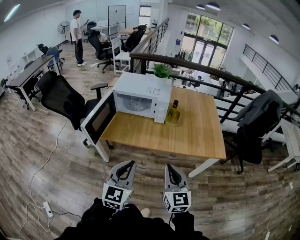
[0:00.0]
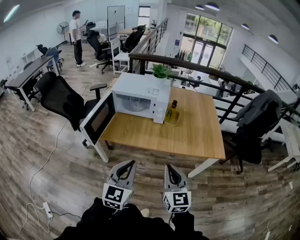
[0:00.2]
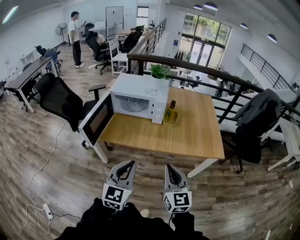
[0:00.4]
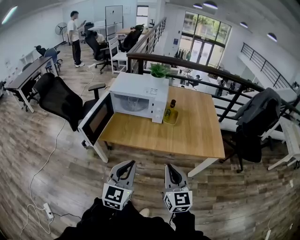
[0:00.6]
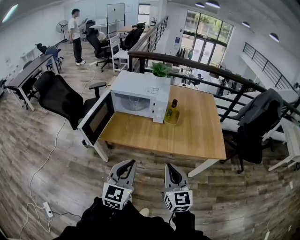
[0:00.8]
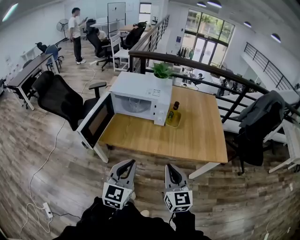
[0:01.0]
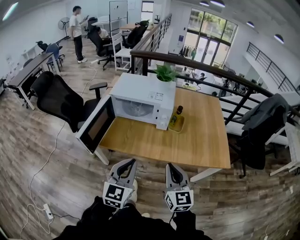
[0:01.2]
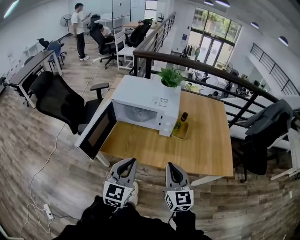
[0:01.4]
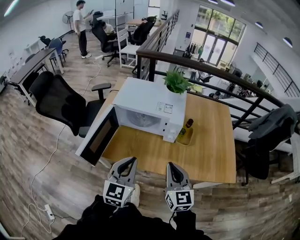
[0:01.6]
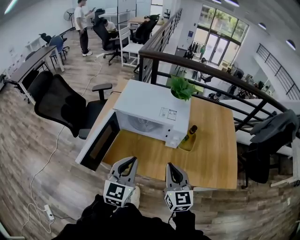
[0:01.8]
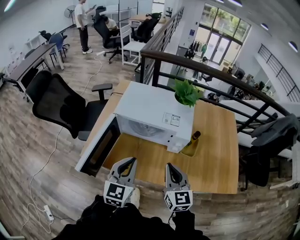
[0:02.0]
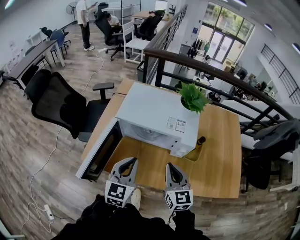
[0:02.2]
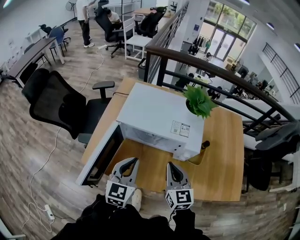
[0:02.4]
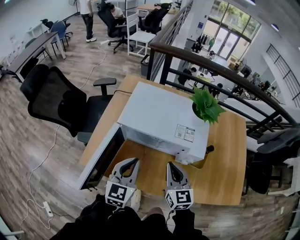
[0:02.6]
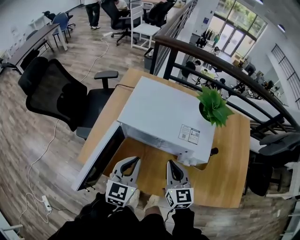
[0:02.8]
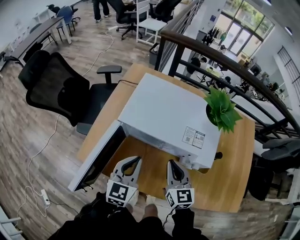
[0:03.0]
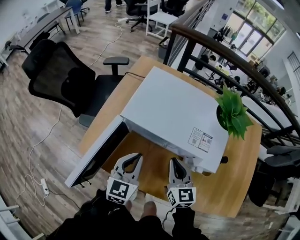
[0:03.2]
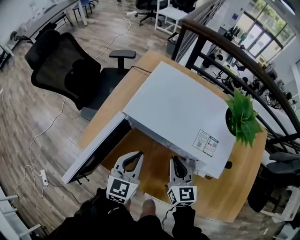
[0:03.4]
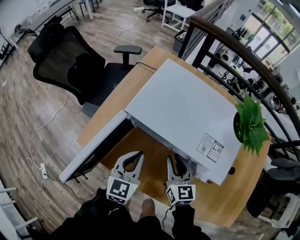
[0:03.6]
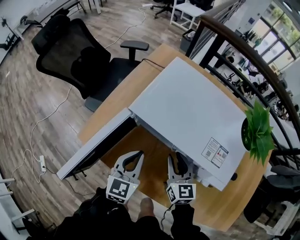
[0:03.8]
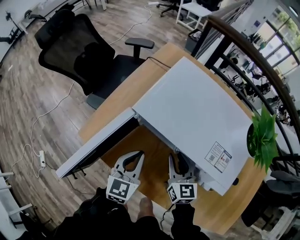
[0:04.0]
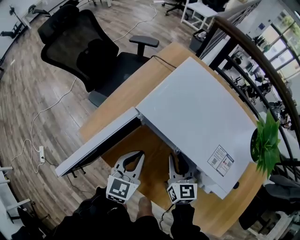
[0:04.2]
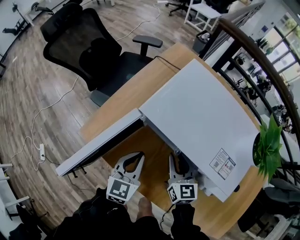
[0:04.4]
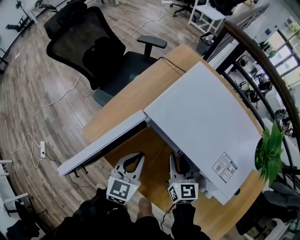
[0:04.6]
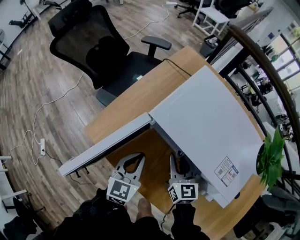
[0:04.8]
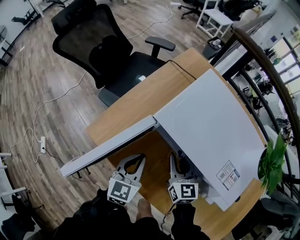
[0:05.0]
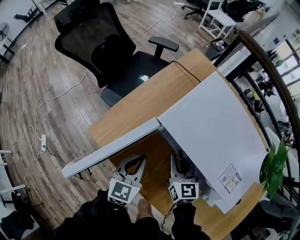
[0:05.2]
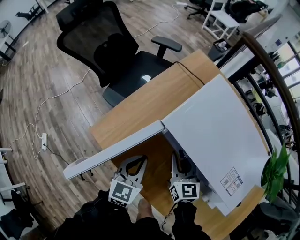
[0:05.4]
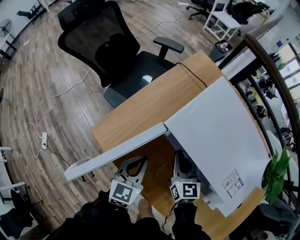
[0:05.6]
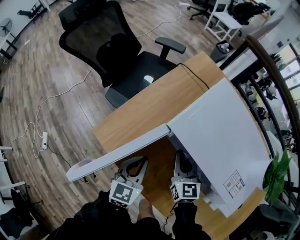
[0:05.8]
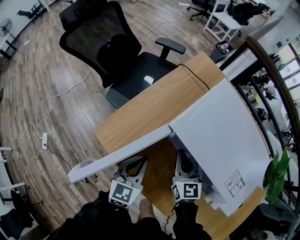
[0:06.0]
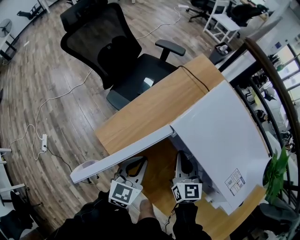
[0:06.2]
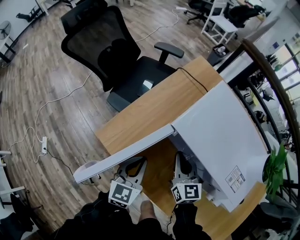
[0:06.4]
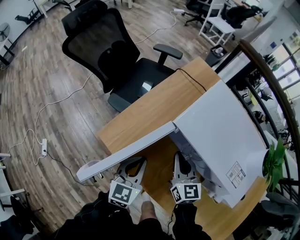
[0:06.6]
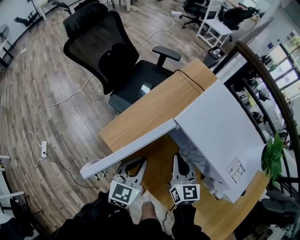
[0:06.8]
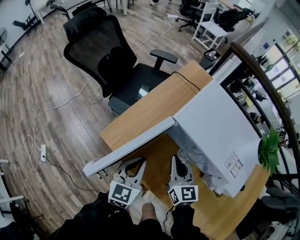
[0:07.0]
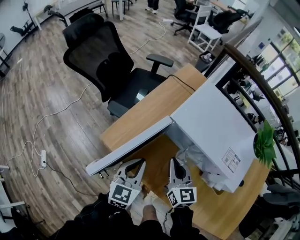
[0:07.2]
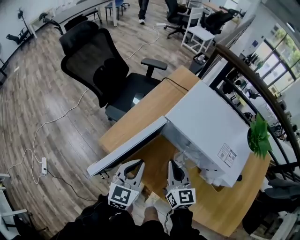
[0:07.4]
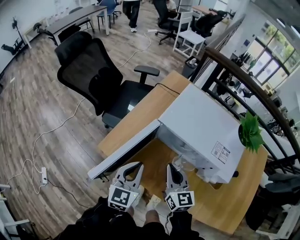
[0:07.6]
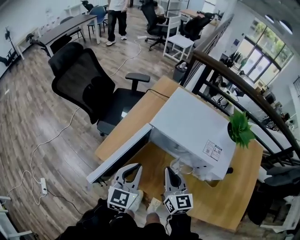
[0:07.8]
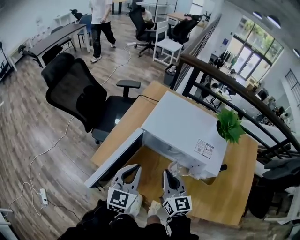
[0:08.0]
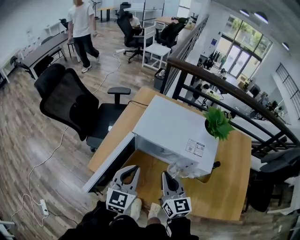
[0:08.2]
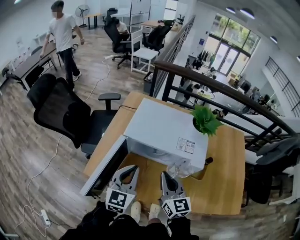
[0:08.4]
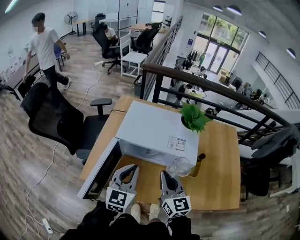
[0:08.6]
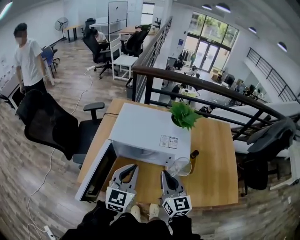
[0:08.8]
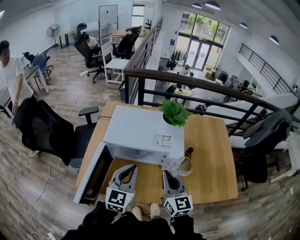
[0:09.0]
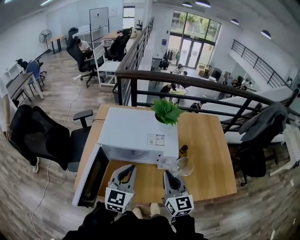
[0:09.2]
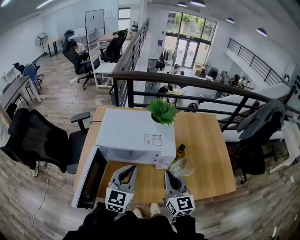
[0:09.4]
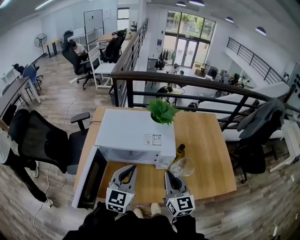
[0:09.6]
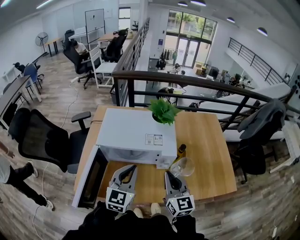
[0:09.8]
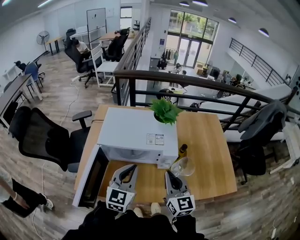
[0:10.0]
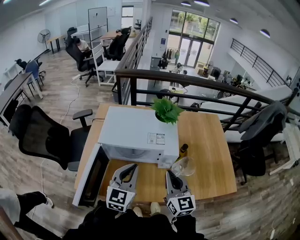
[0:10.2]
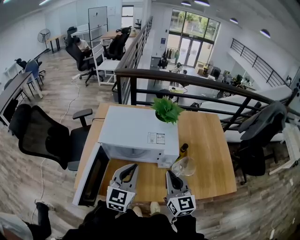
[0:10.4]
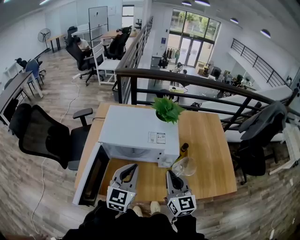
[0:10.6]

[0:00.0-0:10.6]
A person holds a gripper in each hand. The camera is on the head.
0:00.0 to 0:01.6: The two grippers go approximately 25 cm forward.
0:01.6 to 0:03.0: The grippers both shift forward and downward by some 25 cm.
0:03.0 to 0:04.6: The right gripper travels downward, forward and to the left by approximately 15 cm, and opens its fingers; the left gripper is displaced downward by about 10 cm, and turns by about 20 degrees.
0:04.6 to 0:06.0: Both grippers travel together to the left, about 5 cm. The right gripper closes up.
0:06.0 to 0:07.6: The right gripper is displaced backward and upward by approximately 15 cm. The left gripper is displaced upward and backward by about 10 cm.
0:07.6 to 0:09.0: The left gripper changes place by roughly 20 cm, and rotates approximately 30 degrees. Meanwhile the right gripper changes place by roughly 20 cm, and rotates approximately 30 degrees.
0:09.0 to 0:10.6: The grippers move only a little.

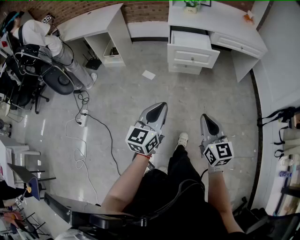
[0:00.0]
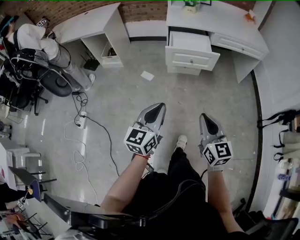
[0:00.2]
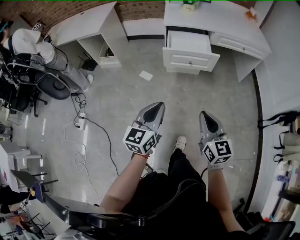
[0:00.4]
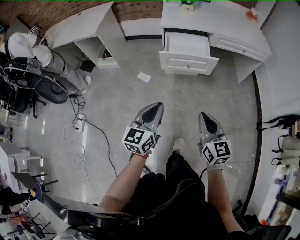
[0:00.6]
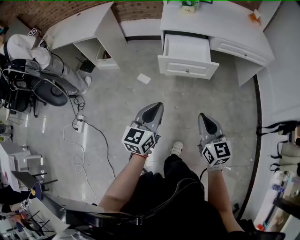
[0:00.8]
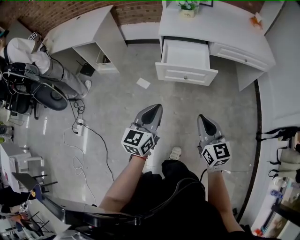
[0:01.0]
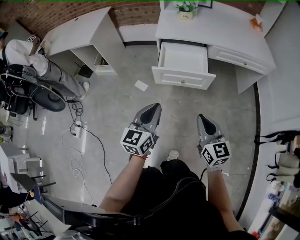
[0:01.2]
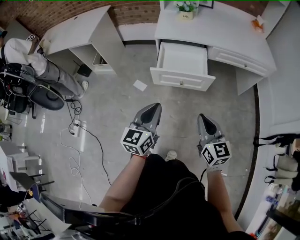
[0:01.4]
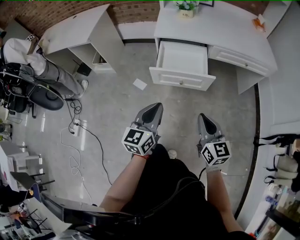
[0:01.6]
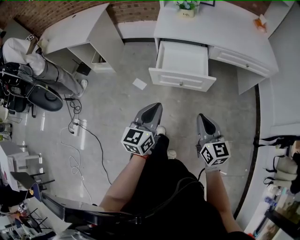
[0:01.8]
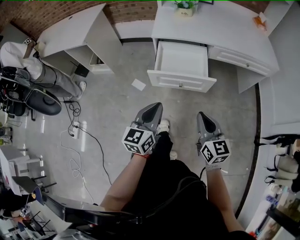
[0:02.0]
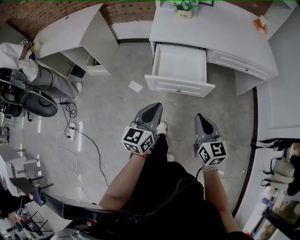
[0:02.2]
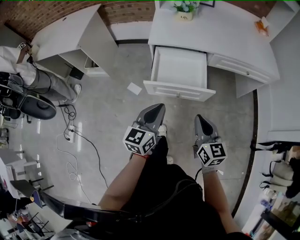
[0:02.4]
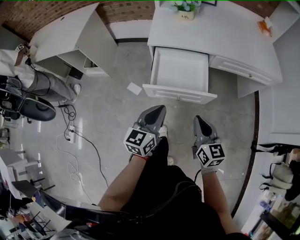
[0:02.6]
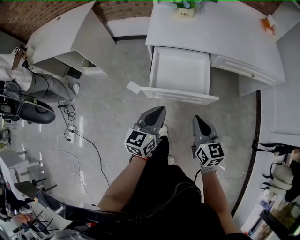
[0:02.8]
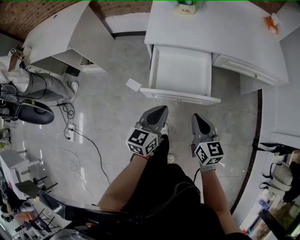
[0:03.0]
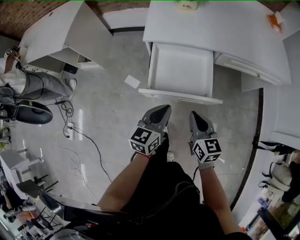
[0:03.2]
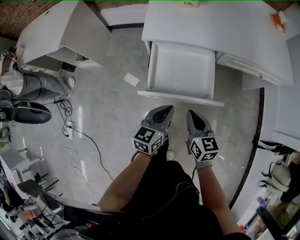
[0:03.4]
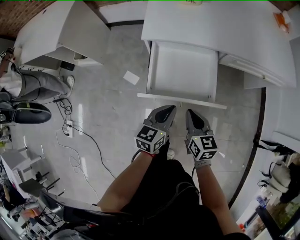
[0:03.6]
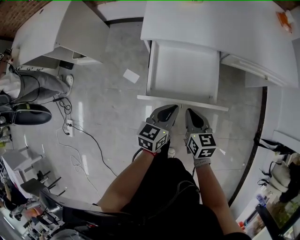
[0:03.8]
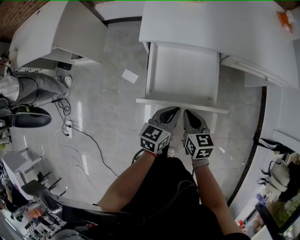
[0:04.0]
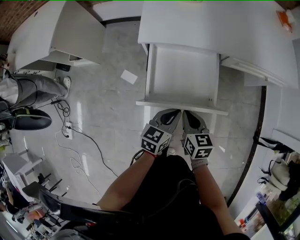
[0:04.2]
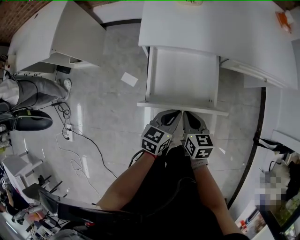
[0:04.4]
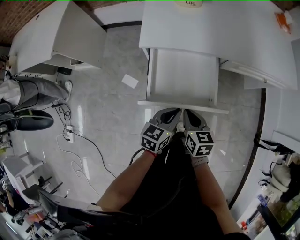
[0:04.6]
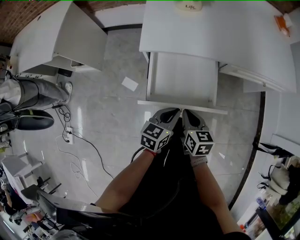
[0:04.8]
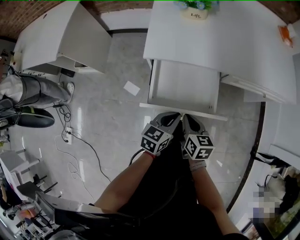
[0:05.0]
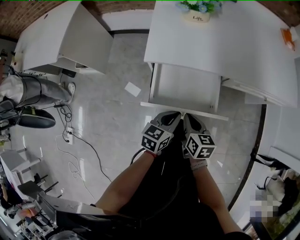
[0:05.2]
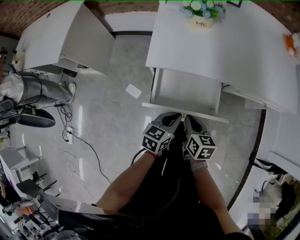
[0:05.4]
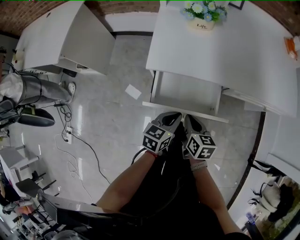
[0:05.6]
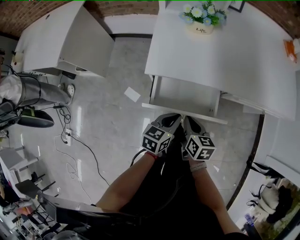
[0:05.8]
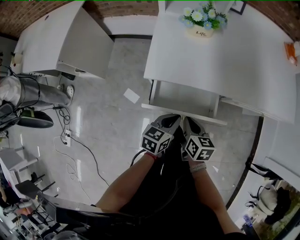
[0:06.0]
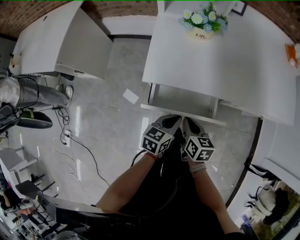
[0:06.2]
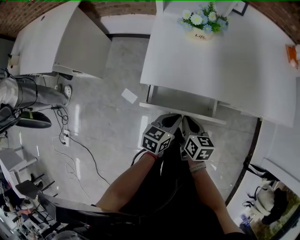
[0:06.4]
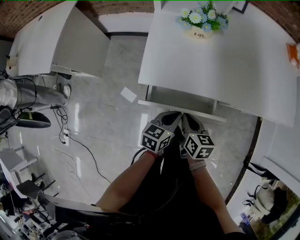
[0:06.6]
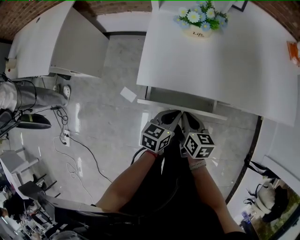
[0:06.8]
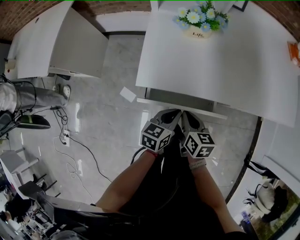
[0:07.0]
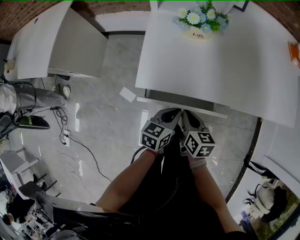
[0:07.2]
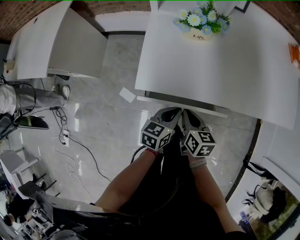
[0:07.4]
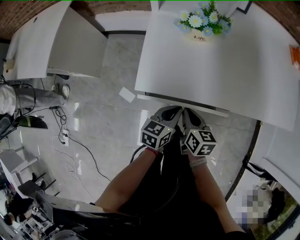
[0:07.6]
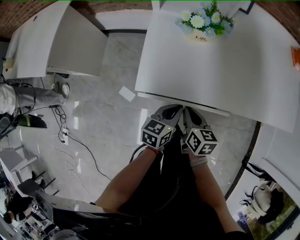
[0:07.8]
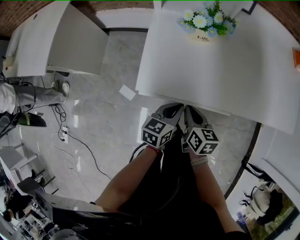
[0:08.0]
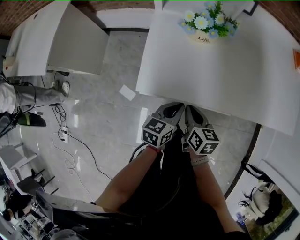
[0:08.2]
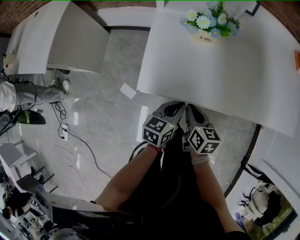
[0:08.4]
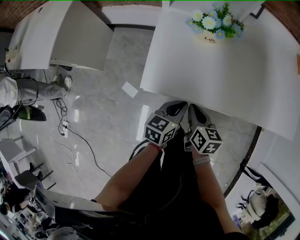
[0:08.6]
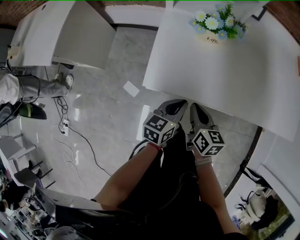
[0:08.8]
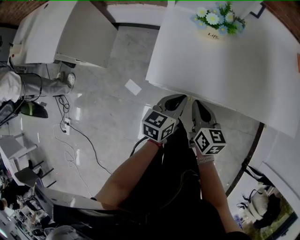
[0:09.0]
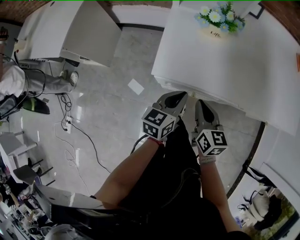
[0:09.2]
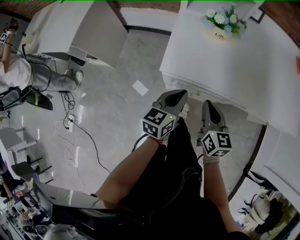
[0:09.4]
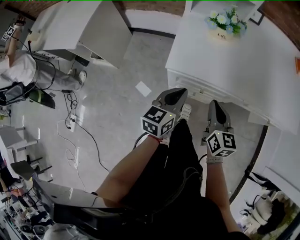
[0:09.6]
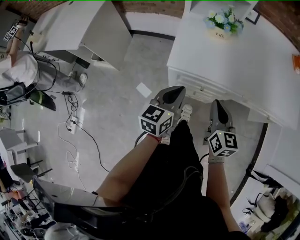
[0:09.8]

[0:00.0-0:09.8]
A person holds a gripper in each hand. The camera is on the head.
0:00.0 to 0:01.4: Both grippers travel together forward, approximately 30 cm.
0:01.4 to 0:02.8: The grippers both shift forward and downward by about 20 cm.
0:02.8 to 0:04.2: The right gripper shifts approximately 15 cm downward, forward and to the left, and swivels approximately 20 degrees. The left gripper is displaced downward and forward by roughly 15 cm, and swivels about 20 degrees.
0:04.2 to 0:05.6: Both grippers travel together forward, approximately 10 cm.
0:05.6 to 0:07.0: The two grippers go roughly 10 cm forward.
0:07.0 to 0:08.4: Both grippers travel together forward, roughly 5 cm.
0:08.4 to 0:09.8: The right gripper travels upward and backward by some 15 cm, and swivels roughly 30 degrees. The left gripper moves upward, to the left and backward, some 15 cm.

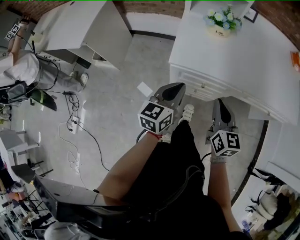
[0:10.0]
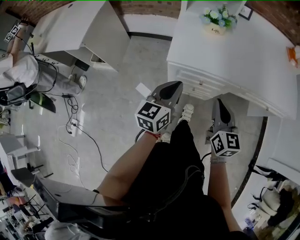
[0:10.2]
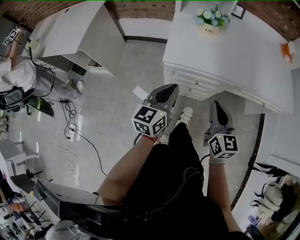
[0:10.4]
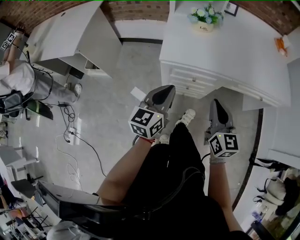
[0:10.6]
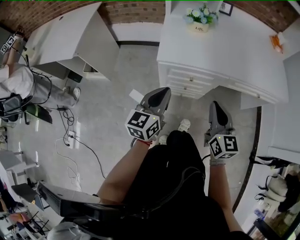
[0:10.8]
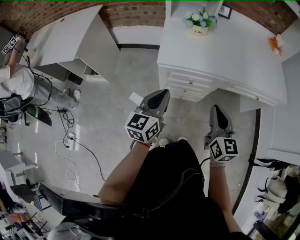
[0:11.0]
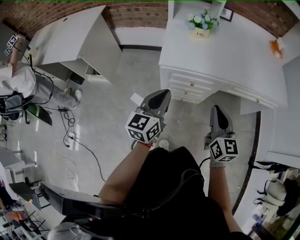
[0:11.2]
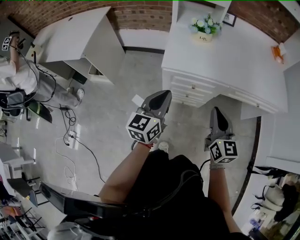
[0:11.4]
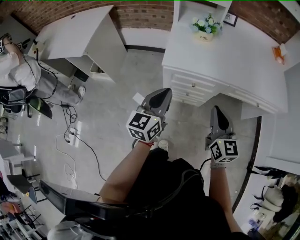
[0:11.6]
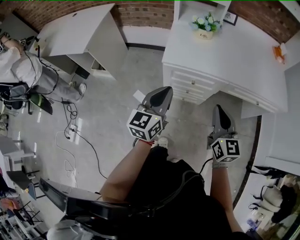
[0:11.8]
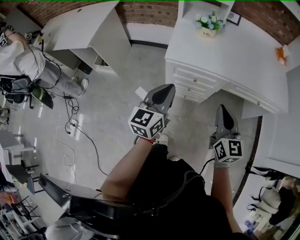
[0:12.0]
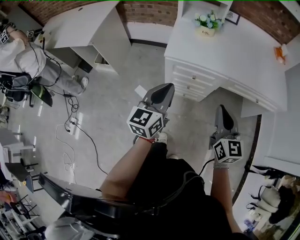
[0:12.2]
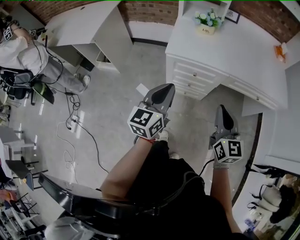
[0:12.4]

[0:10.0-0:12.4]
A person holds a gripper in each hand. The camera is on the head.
0:10.0 to 0:11.2: The grippers both shift backward by some 10 cm.
0:11.2 to 0:12.4: The left gripper goes some 10 cm backward and upward, while the right gripper travels backward by roughly 5 cm.

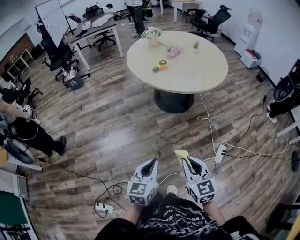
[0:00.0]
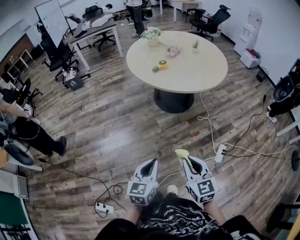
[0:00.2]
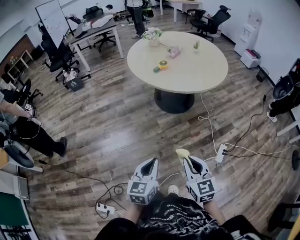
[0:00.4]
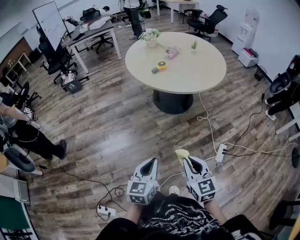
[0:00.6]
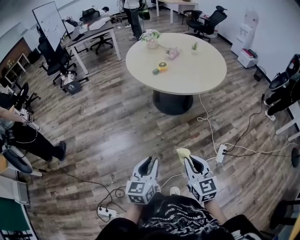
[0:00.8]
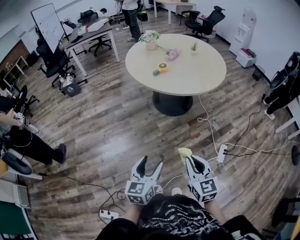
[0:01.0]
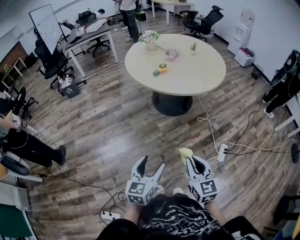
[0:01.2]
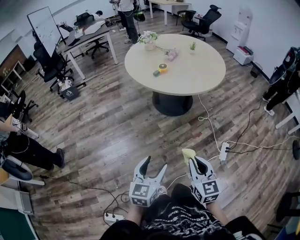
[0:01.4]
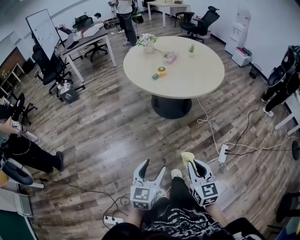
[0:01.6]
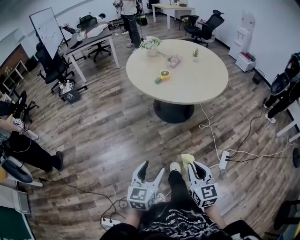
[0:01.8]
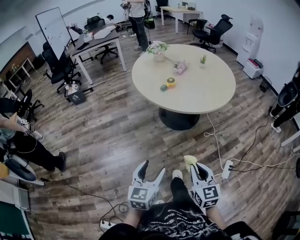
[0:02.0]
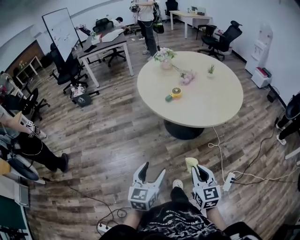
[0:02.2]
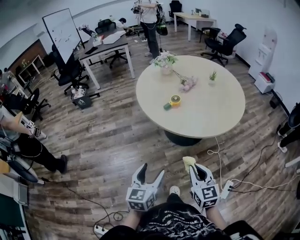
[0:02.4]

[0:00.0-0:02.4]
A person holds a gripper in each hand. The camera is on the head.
0:00.0 to 0:01.2: The left gripper is displaced to the left by roughly 5 cm, and opens.
0:01.2 to 0:02.4: Both grippers travel together forward, about 25 cm.
